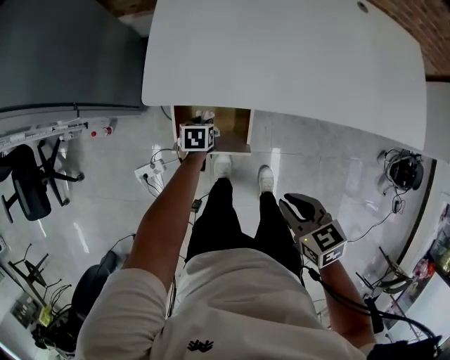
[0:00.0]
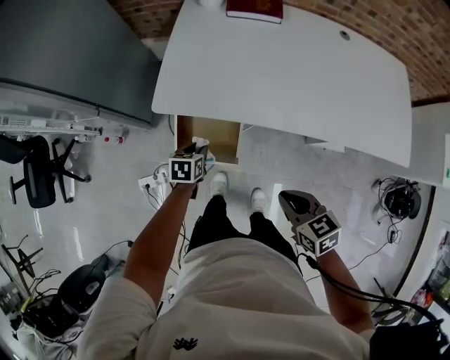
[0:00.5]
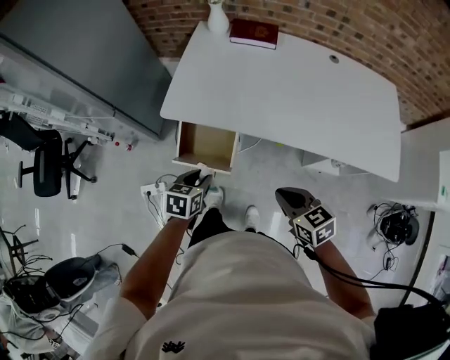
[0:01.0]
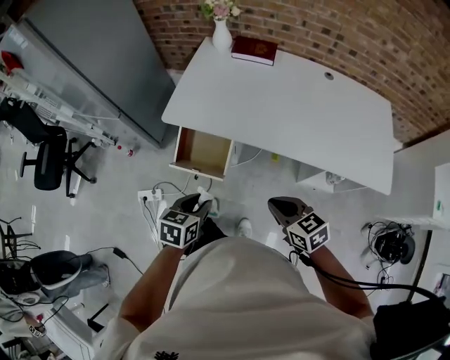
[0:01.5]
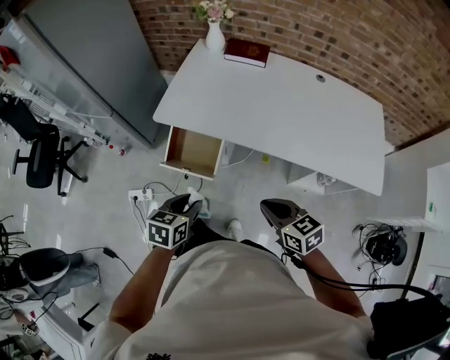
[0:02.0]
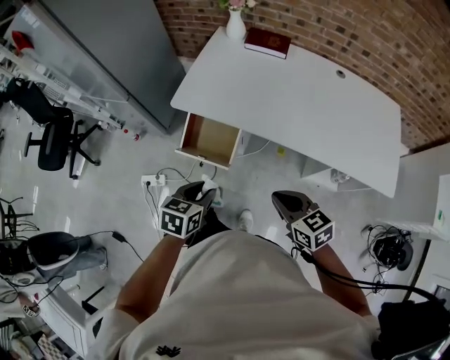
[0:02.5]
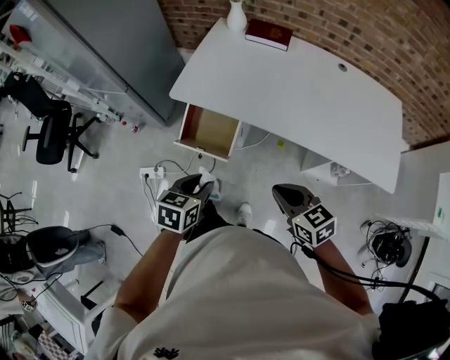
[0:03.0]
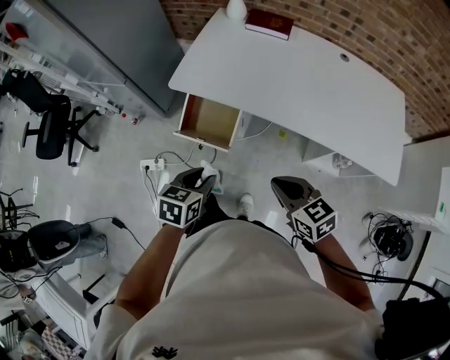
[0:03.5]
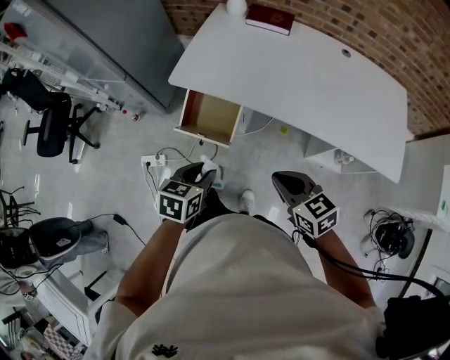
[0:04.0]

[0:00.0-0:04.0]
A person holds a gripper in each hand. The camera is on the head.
0:00.0 to 0:02.0: The right gripper heads to the right, upward and backward, covering about 25 cm, and changes its angle by approximately 20 degrees. The left gripper travels upward and backward by approximately 50 cm, and changes its angle by some 20 degrees.
0:02.0 to 0:04.0: The grippers make only small movements.

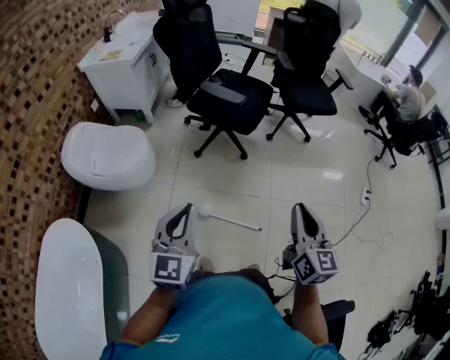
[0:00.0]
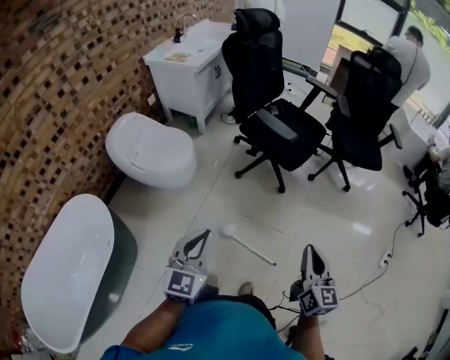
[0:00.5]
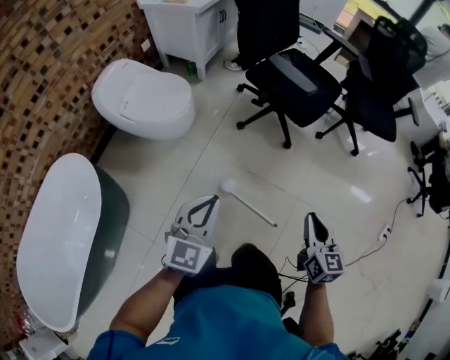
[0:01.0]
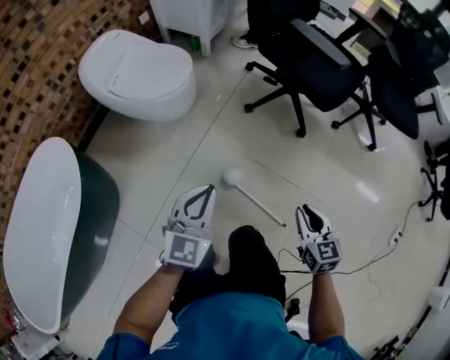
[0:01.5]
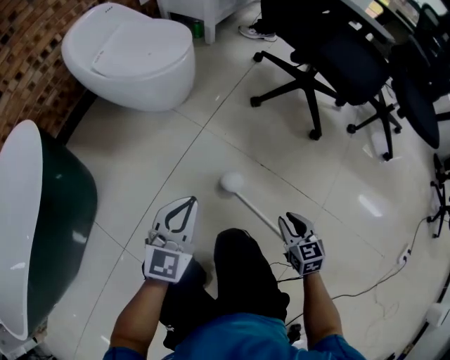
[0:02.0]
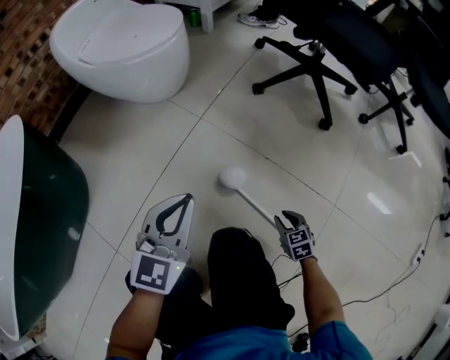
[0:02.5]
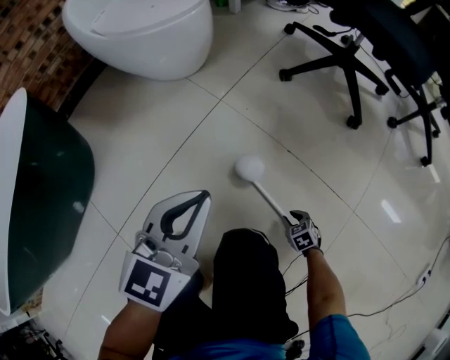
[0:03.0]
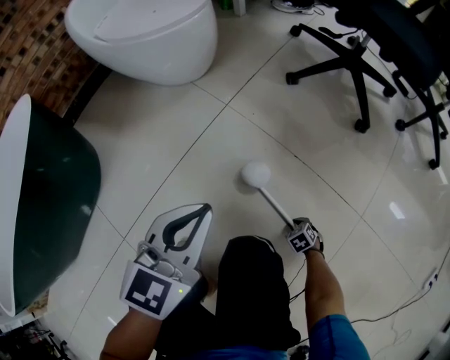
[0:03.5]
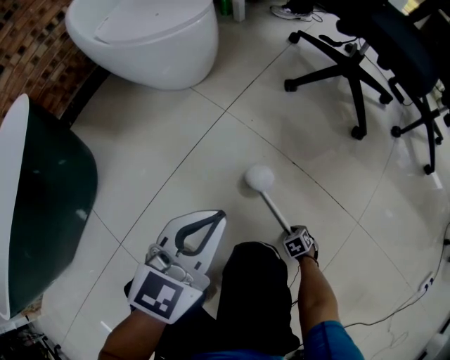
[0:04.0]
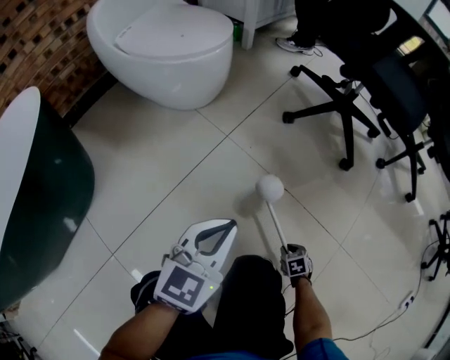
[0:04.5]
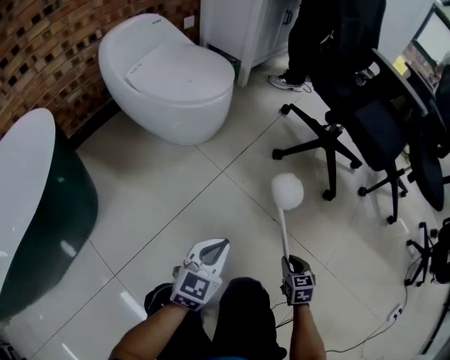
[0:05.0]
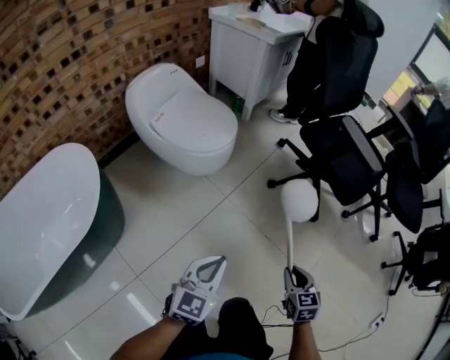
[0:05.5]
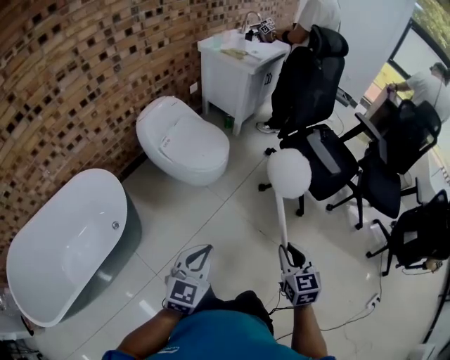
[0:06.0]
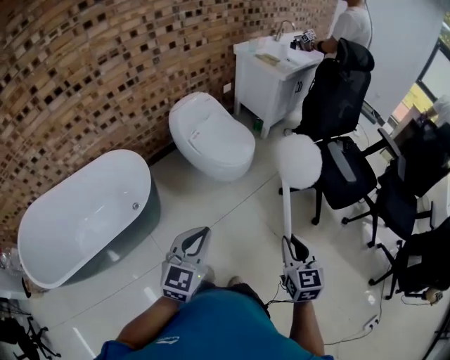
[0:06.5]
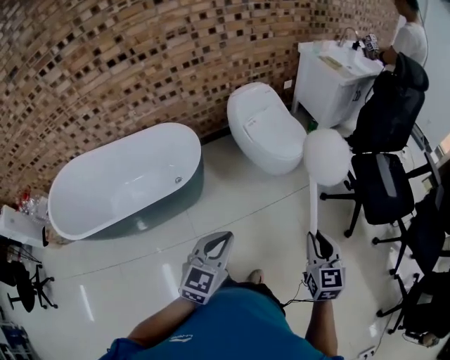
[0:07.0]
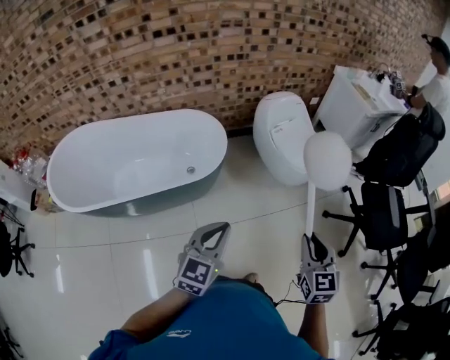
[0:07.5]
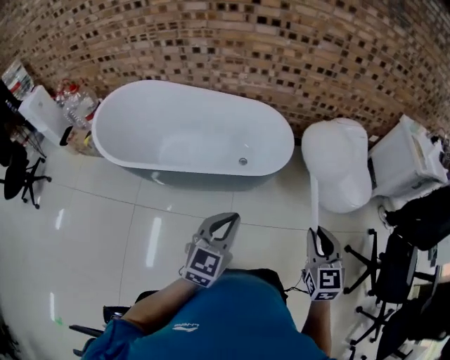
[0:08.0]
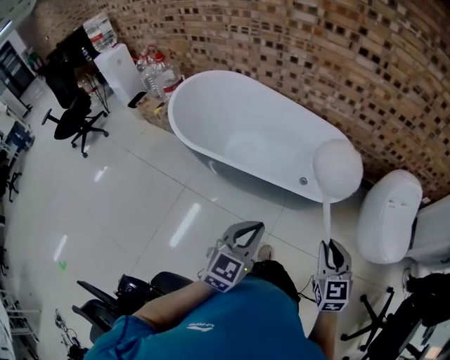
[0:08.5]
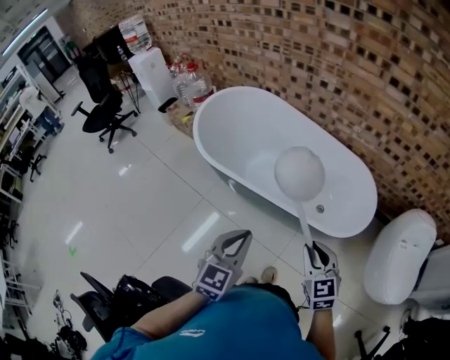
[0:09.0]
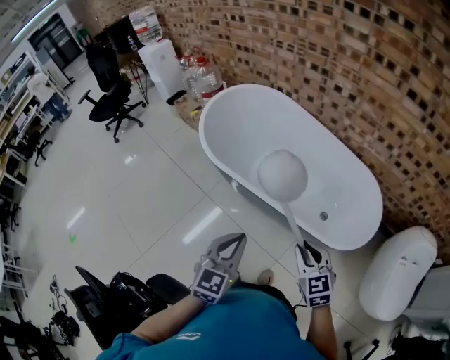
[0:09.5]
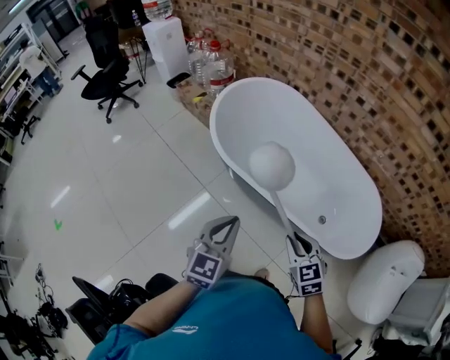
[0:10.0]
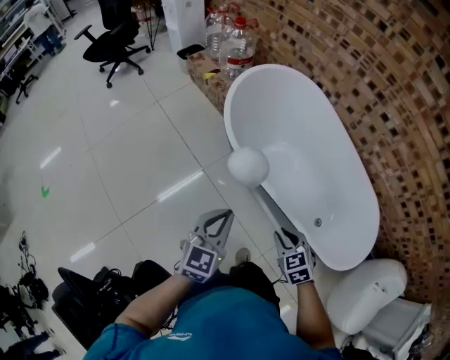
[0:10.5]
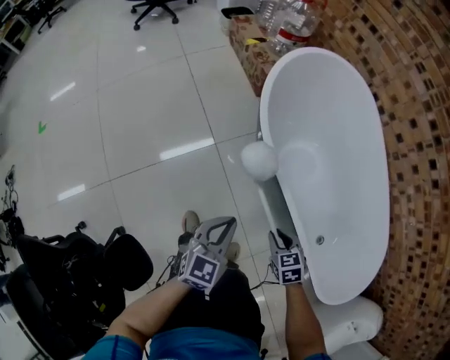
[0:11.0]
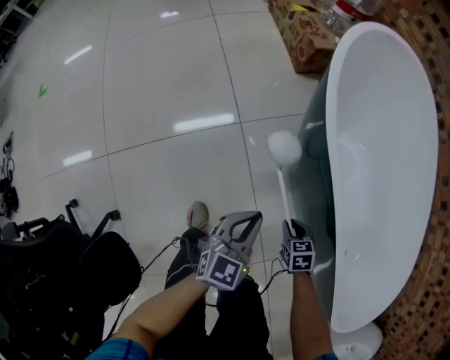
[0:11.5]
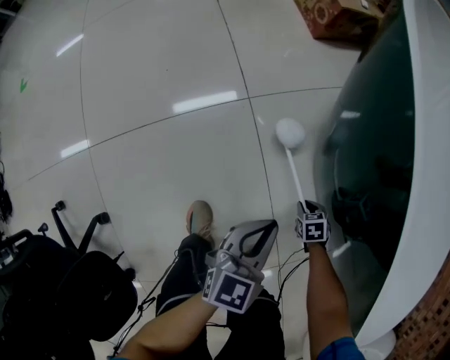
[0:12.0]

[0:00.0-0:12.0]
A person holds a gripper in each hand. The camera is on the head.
0:00.0 to 0:02.0: The grippers both shift downward by roughly 60 cm. The right gripper tilts its fingers about 30 degrees downward.
0:02.0 to 0:04.0: The left gripper is displaced downward by approximately 10 cm. The right gripper travels downward by approximately 40 cm, and points its fingers approximately 40 degrees further downward.
0:04.0 to 0:06.0: The right gripper moves upward, about 1 m, and points its fingers approximately 50 degrees further upward. The left gripper goes some 50 cm upward.
0:06.0 to 0:08.0: Both grippers are carried approximately 40 cm. The left gripper rotates approximately 50 degrees, while the right gripper rotates some 50 degrees.
0:08.0 to 0:10.0: The left gripper ends up some 40 cm from where it was, and turns by approximately 40 degrees; the right gripper ends up approximately 50 cm from where it was, and changes its angle by about 50 degrees.
0:10.0 to 0:12.0: The grippers both shift downward by about 70 cm. The right gripper points its fingers some 40 degrees further downward. The left gripper swivels approximately 30 degrees.

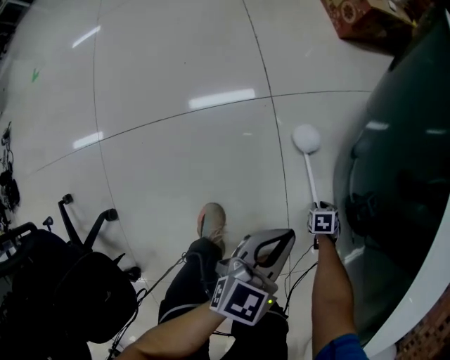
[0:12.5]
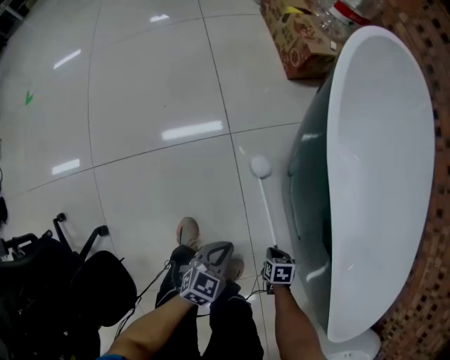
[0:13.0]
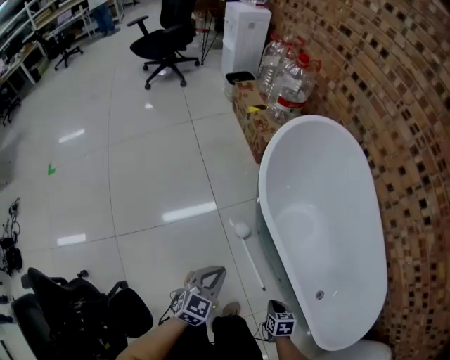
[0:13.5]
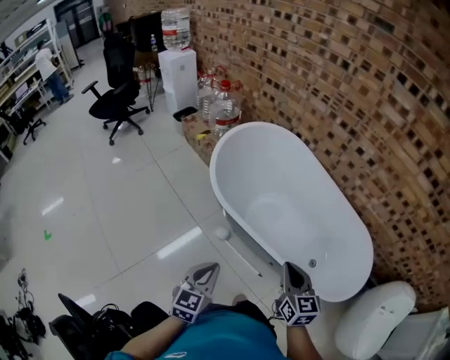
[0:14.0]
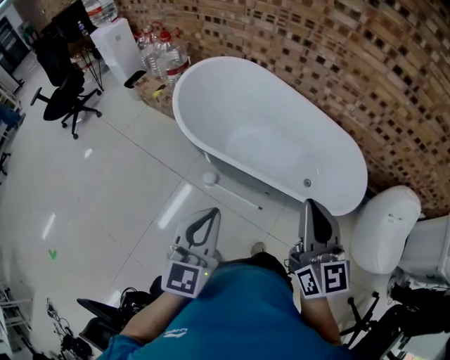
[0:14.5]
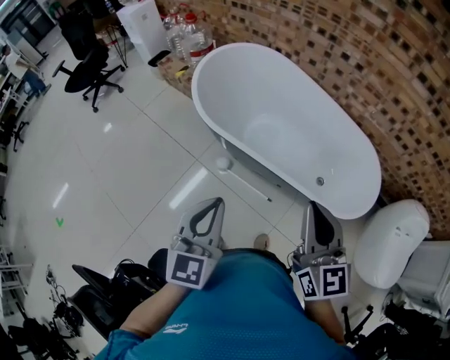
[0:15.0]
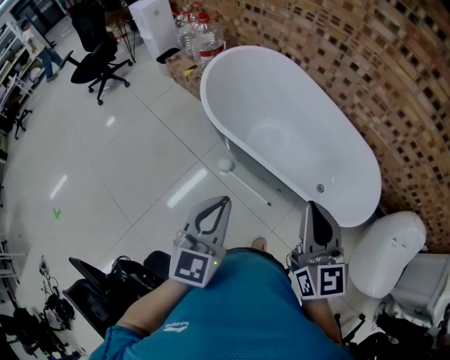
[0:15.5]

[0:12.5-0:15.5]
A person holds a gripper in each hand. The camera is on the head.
0:12.5 to 0:14.0: The right gripper goes some 90 cm upward, points its fingers approximately 70 degrees further upward, and closes, while the left gripper is displaced upward by roughly 60 cm, and turns by approximately 20 degrees.
0:14.0 to 0:15.5: The left gripper is displaced upward and to the right by about 15 cm, while the right gripper moves upward and backward, about 15 cm.

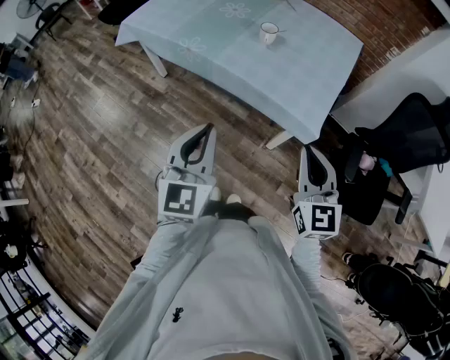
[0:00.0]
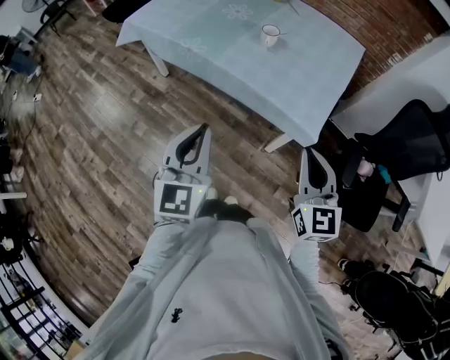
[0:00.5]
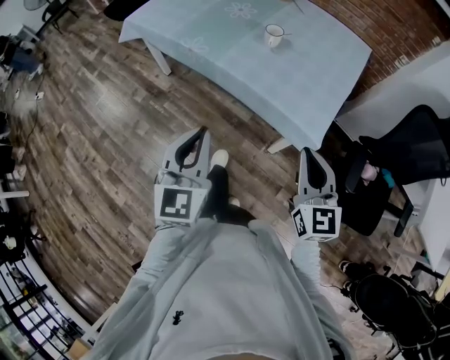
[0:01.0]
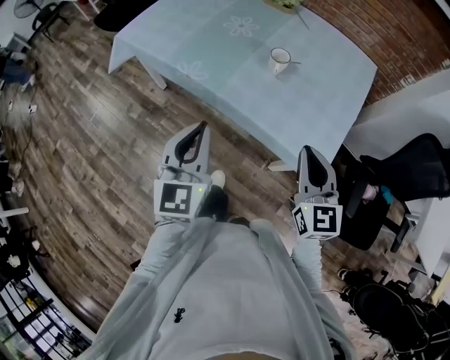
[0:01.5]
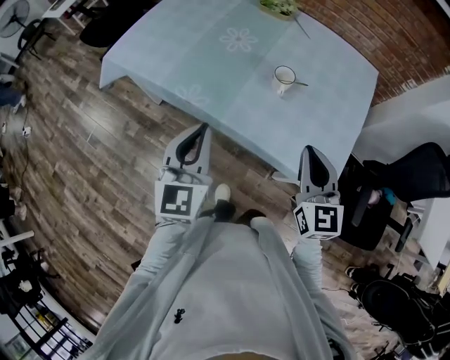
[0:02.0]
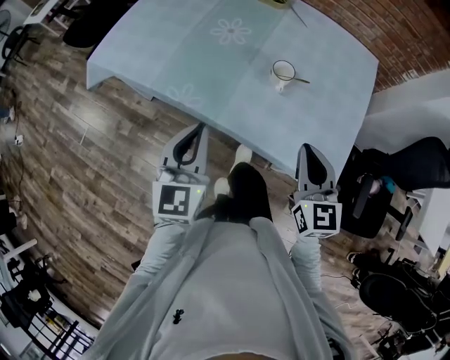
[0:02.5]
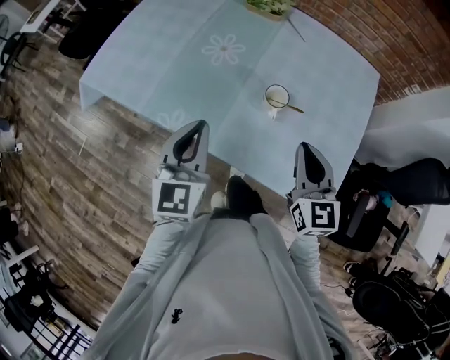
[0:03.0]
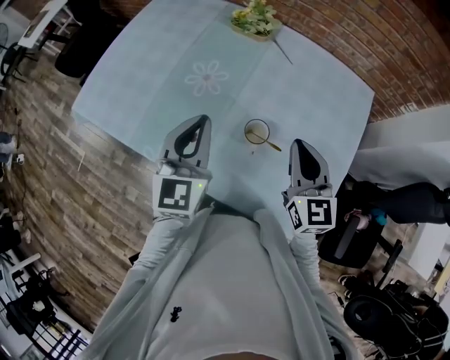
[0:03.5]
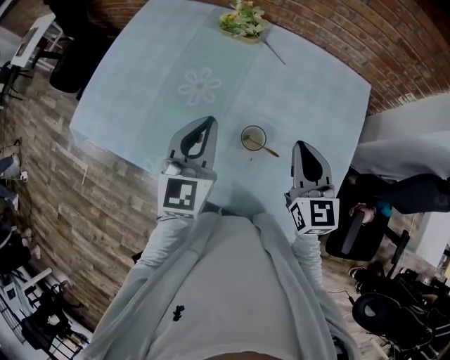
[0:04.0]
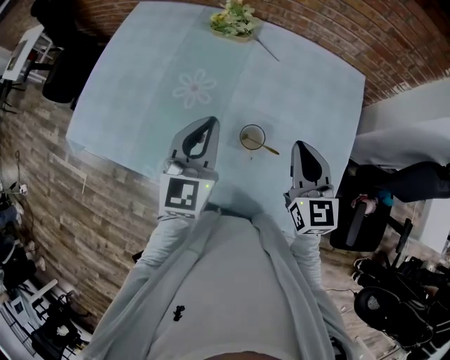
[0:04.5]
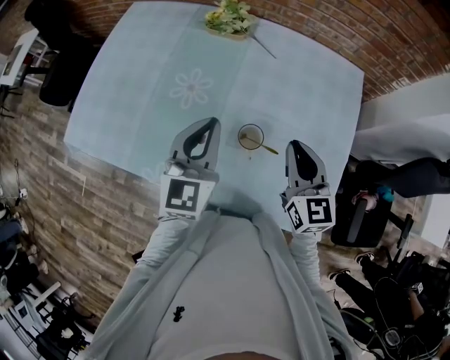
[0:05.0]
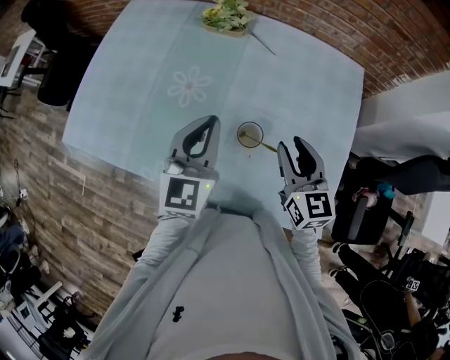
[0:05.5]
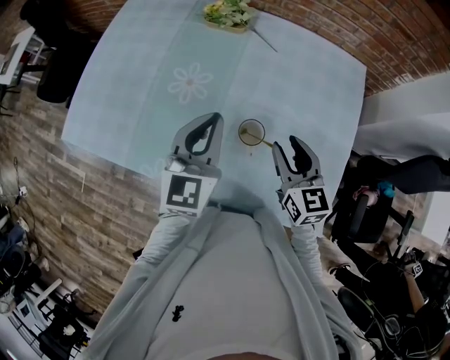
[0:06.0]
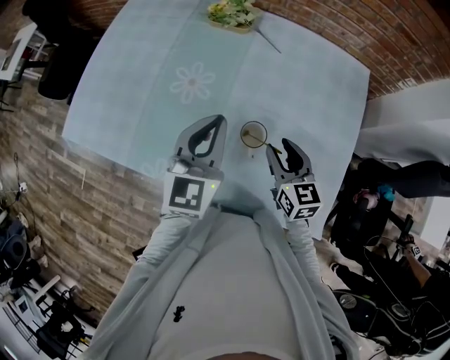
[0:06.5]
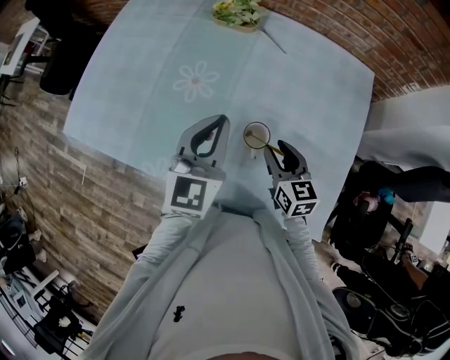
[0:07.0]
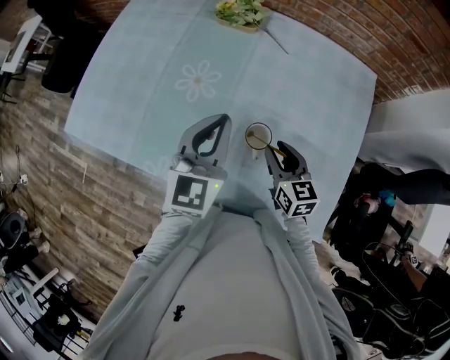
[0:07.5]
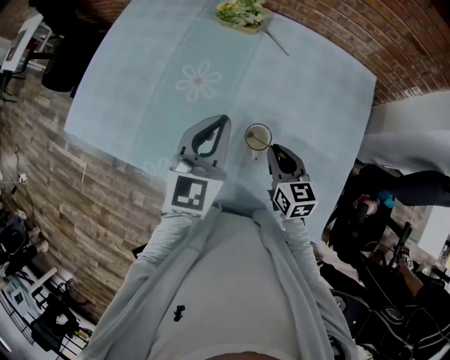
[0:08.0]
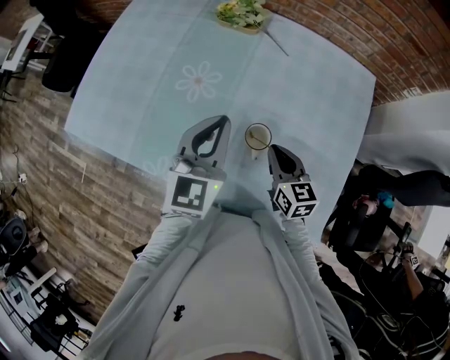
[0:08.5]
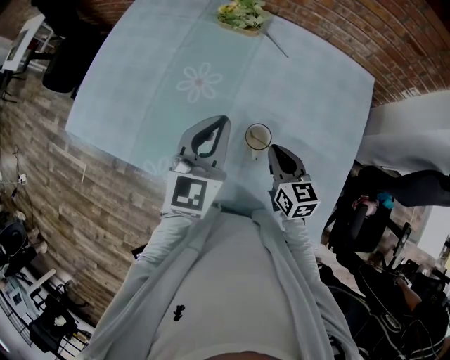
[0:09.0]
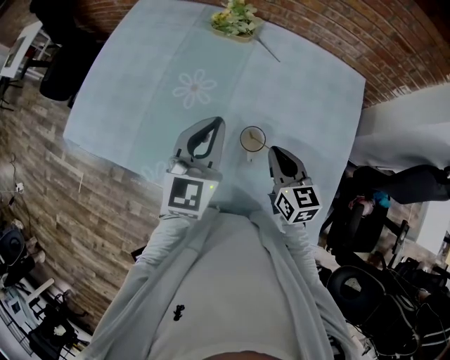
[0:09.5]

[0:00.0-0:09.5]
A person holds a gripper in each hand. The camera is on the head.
0:00.0 to 0:02.0: Both grippers move forward, approximately 25 cm.
0:02.0 to 0:04.0: The two grippers go roughly 25 cm forward.
0:04.0 to 0:05.5: The right gripper opens up.
0:05.5 to 0:07.5: The right gripper shifts approximately 10 cm downward.
0:07.5 to 0:09.5: The right gripper closes its fingers.
